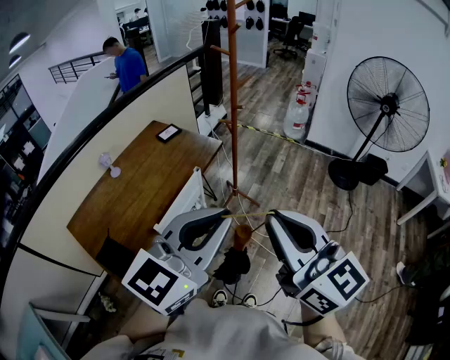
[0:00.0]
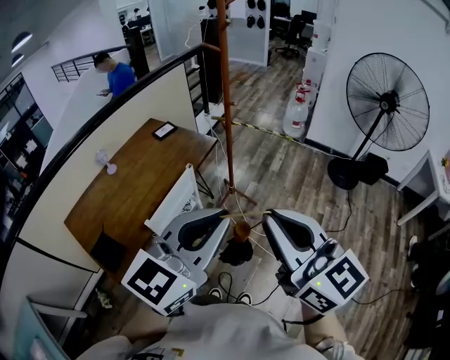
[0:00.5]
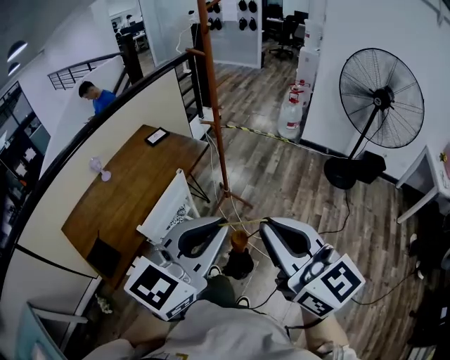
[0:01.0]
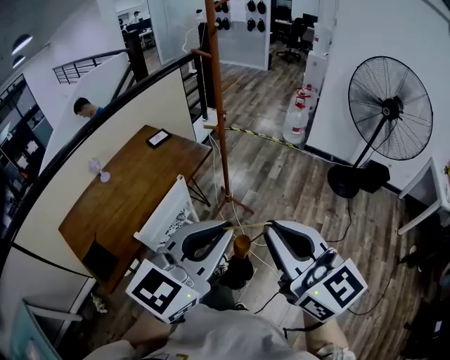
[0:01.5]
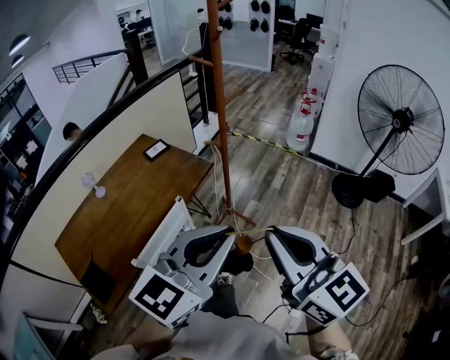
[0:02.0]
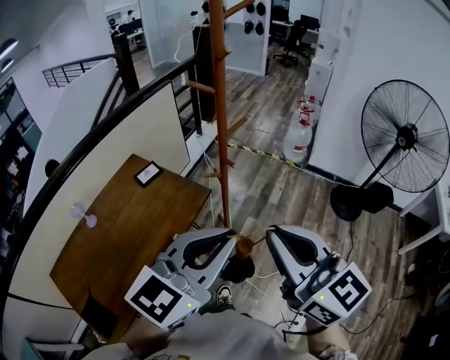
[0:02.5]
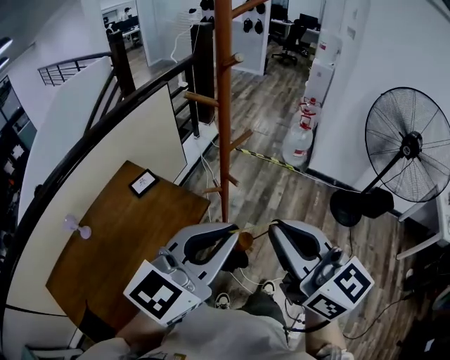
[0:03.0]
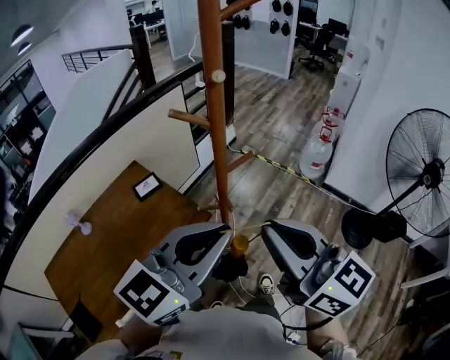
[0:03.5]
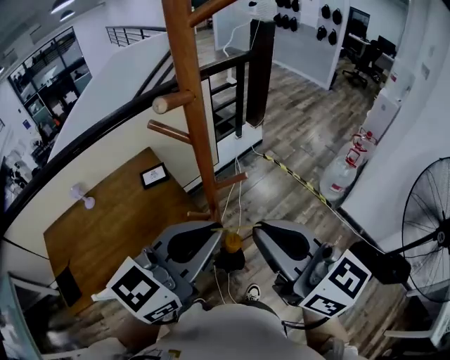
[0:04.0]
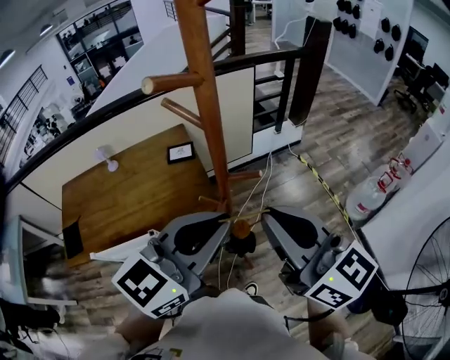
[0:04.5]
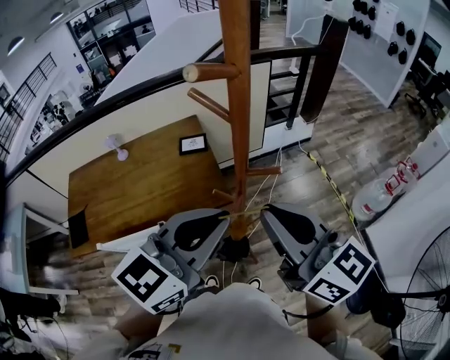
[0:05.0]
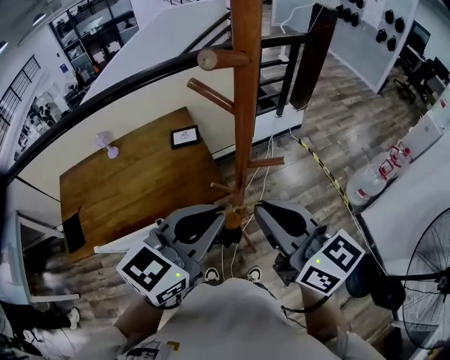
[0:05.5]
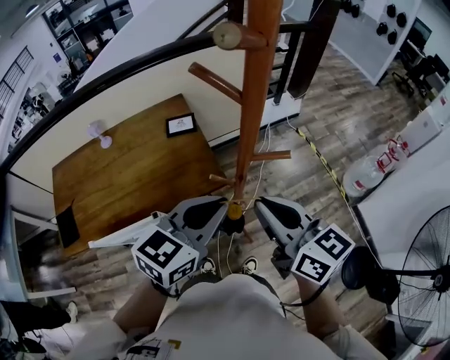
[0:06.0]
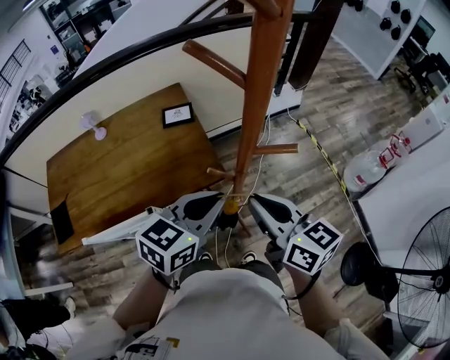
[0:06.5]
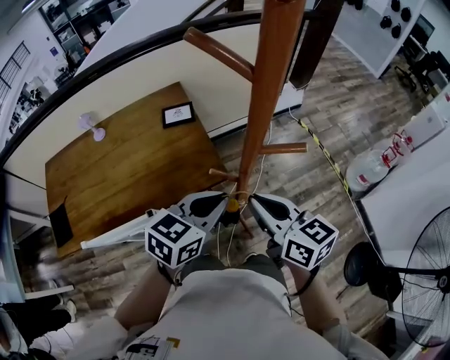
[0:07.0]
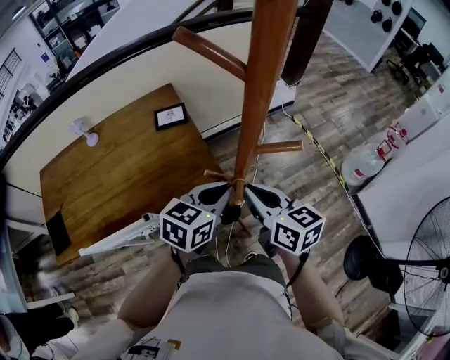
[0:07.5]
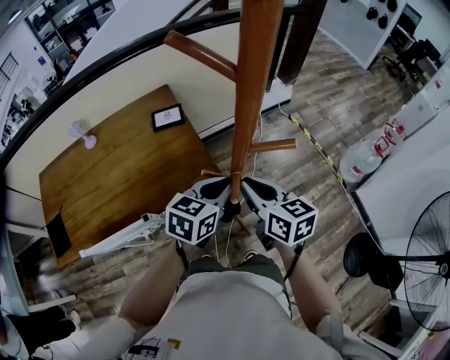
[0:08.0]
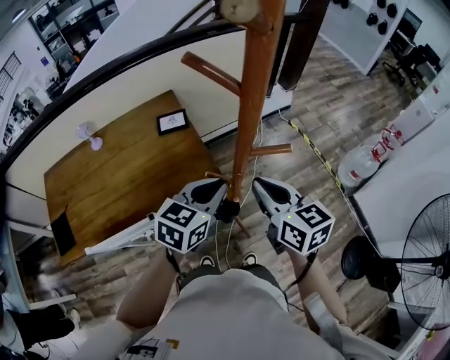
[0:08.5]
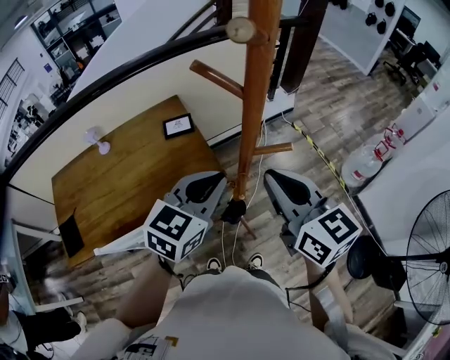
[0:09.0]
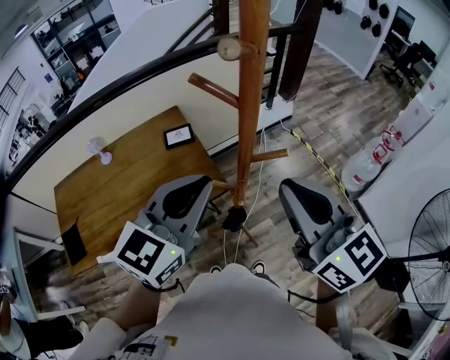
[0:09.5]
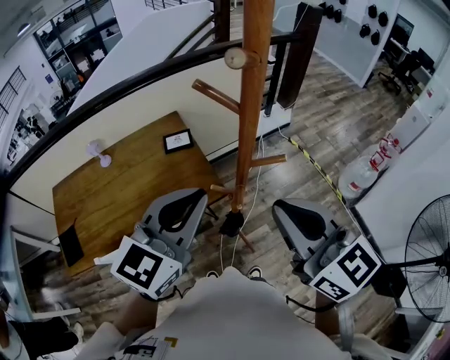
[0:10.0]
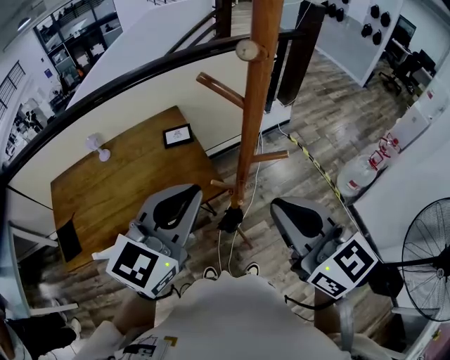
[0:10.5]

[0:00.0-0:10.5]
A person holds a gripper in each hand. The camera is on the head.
0:00.0 to 0:02.0: The grippers both shift forward and to the right by roughly 20 cm.
0:02.0 to 0:04.0: The two grippers travel together, roughly 40 cm. The right gripper turns by approximately 30 degrees.
0:04.0 to 0:06.5: The left gripper shifts about 20 cm downward, and turns by roughly 30 degrees. Meanwhile the right gripper travels downward and forward by some 20 cm, and turns by some 20 degrees.
0:06.5 to 0:08.5: The right gripper reaches roughly 10 cm downward, then returns. The left gripper moves some 10 cm downward and comes back.
0:08.5 to 0:10.5: The right gripper travels upward and backward by roughly 20 cm. The left gripper moves upward, roughly 20 cm, and rotates about 20 degrees.

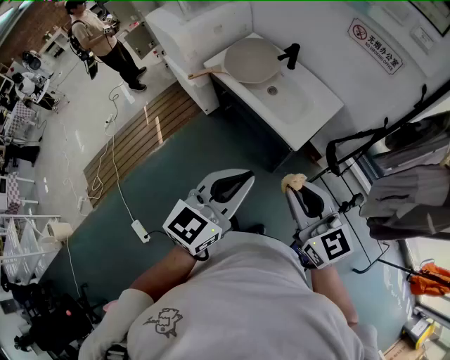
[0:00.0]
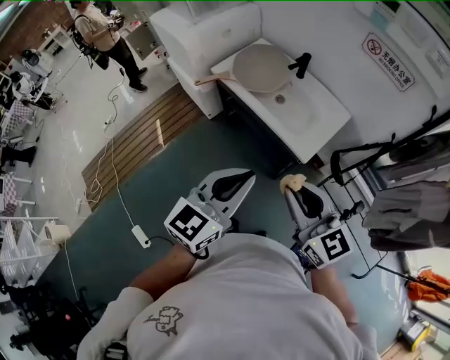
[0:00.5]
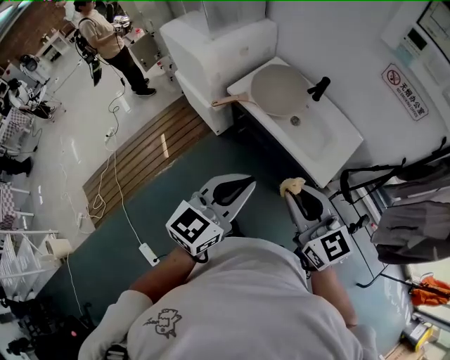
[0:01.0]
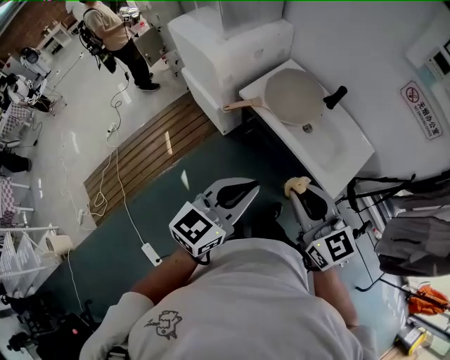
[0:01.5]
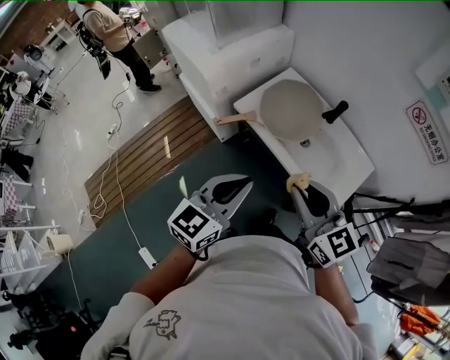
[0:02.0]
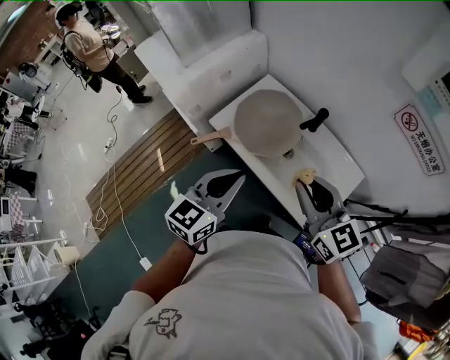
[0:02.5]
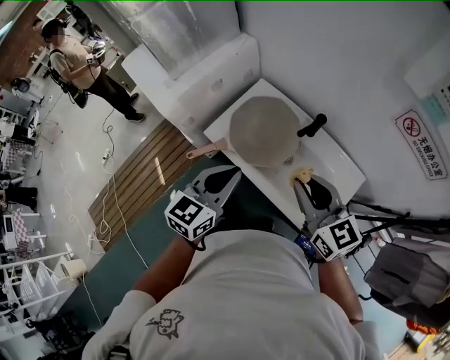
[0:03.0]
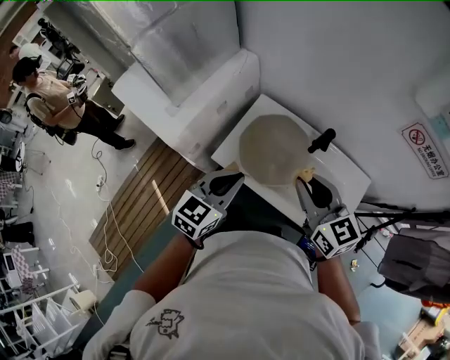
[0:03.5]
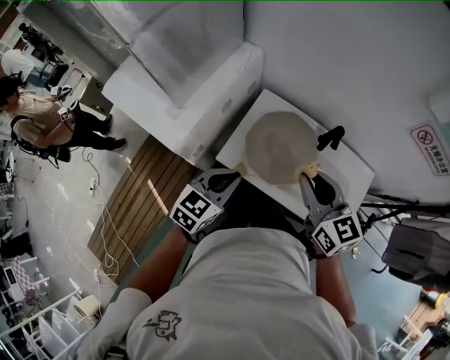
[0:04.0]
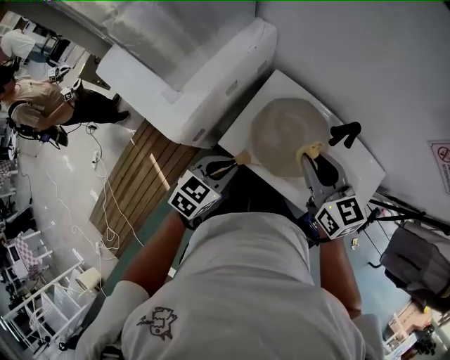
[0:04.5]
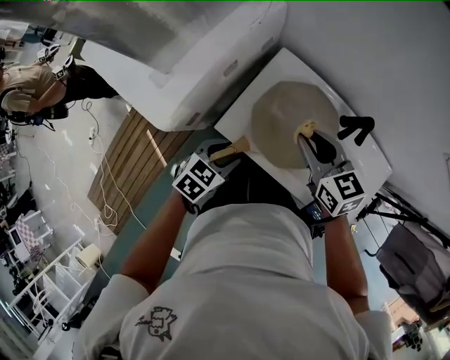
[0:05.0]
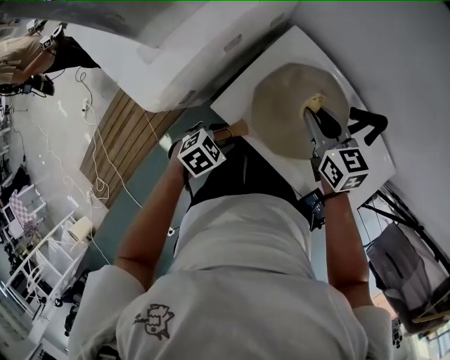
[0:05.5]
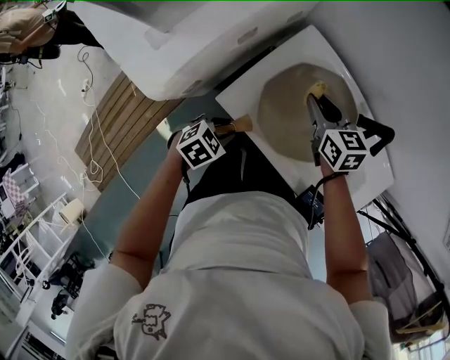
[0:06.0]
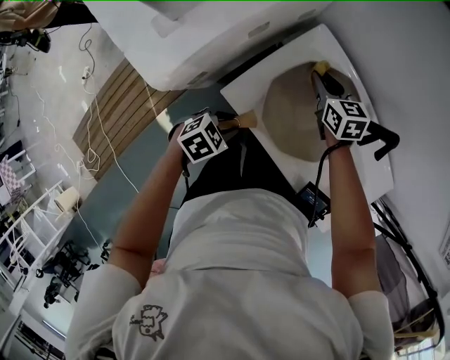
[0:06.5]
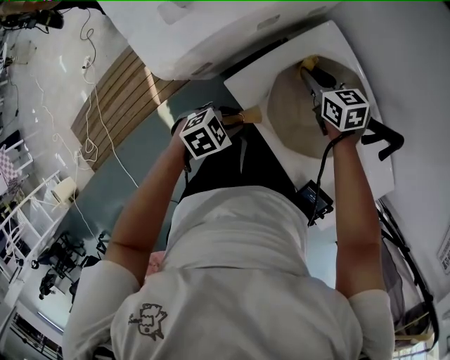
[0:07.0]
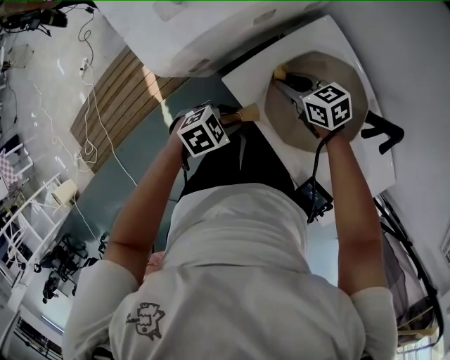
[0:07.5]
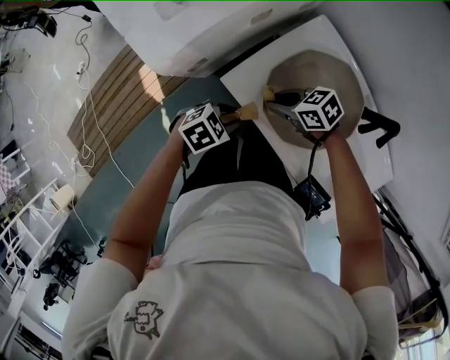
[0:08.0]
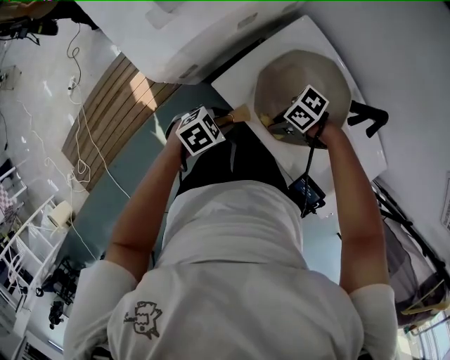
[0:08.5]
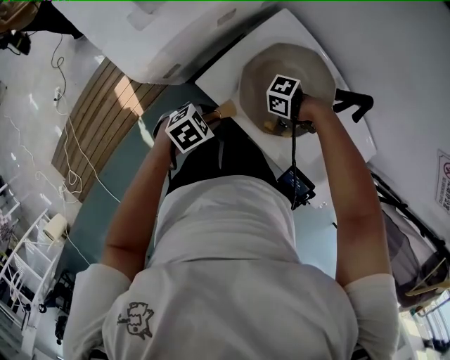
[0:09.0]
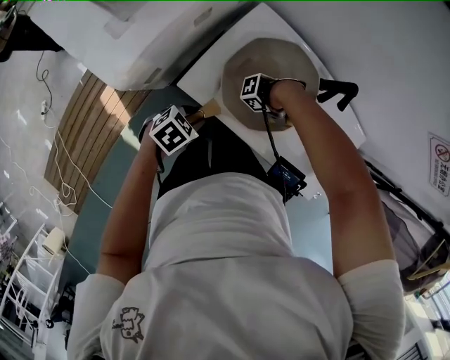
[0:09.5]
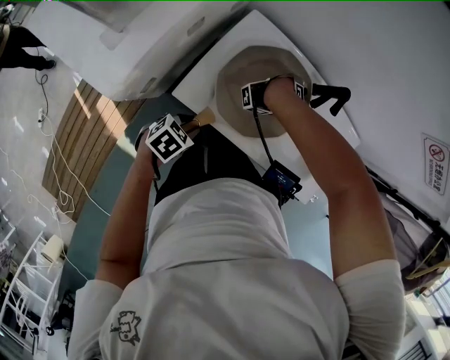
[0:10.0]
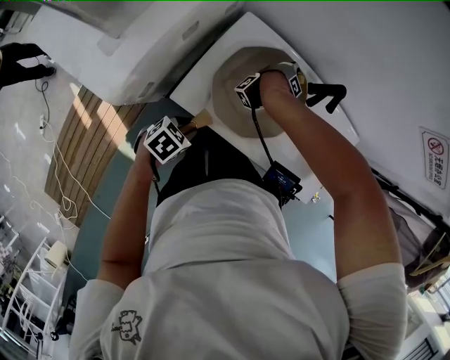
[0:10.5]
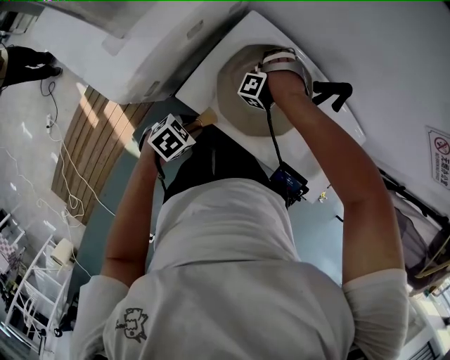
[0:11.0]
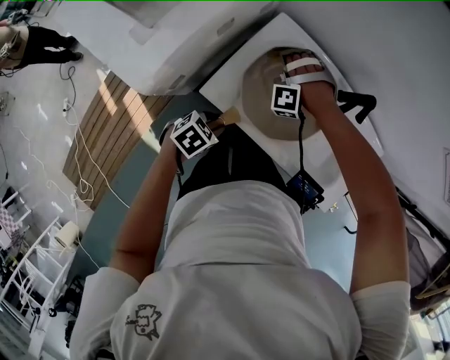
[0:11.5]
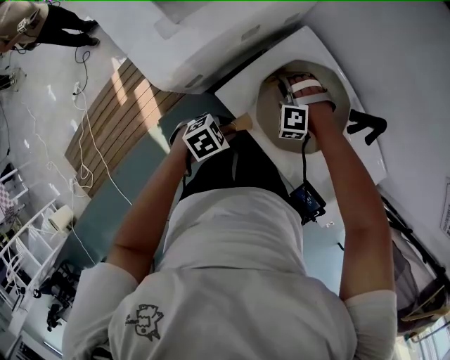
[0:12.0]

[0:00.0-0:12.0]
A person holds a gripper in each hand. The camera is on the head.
0:00.0 to 0:02.0: The two grippers go roughly 35 cm forward and to the left.
0:02.0 to 0:04.0: The right gripper travels forward by about 30 cm, and rotates roughly 30 degrees; the left gripper moves forward and downward, some 30 cm, and swivels roughly 30 degrees.
0:04.0 to 0:06.0: The right gripper shifts roughly 30 cm downward and forward, and rotates roughly 30 degrees. The left gripper goes roughly 25 cm downward, angles its fingers downward, by about 30 degrees, and opens its fingers.
0:06.0 to 0:08.0: The right gripper moves some 20 cm, and swivels approximately 50 degrees.
0:08.0 to 0:10.0: The right gripper moves roughly 25 cm, and rotates some 110 degrees.
0:10.0 to 0:12.0: The right gripper shifts by about 25 cm, and tips its fingers downward by roughly 30 degrees.

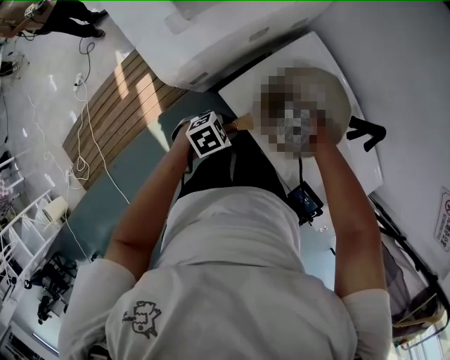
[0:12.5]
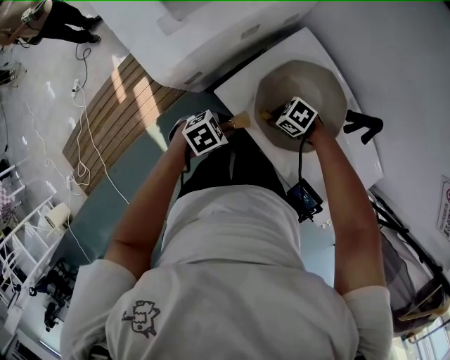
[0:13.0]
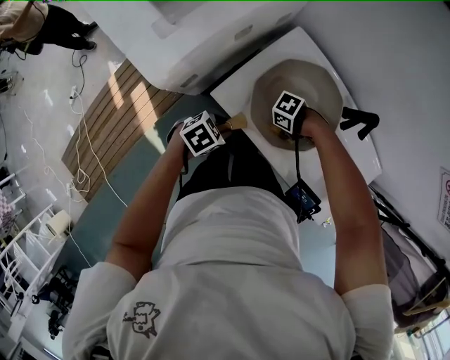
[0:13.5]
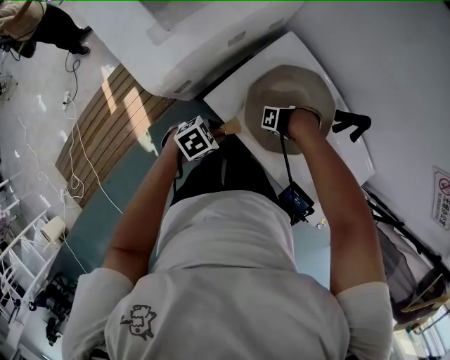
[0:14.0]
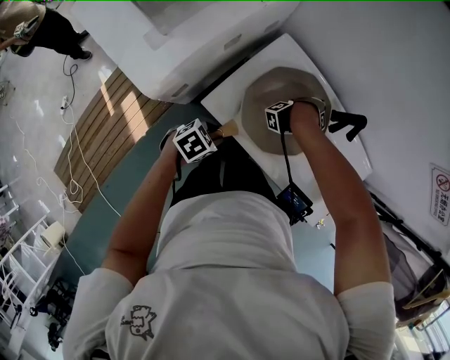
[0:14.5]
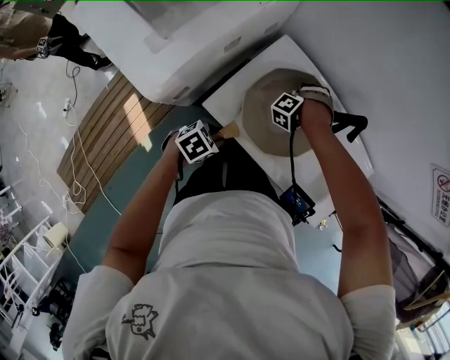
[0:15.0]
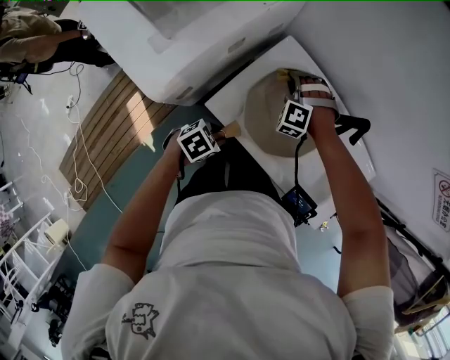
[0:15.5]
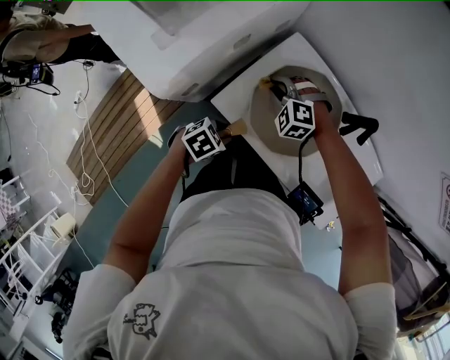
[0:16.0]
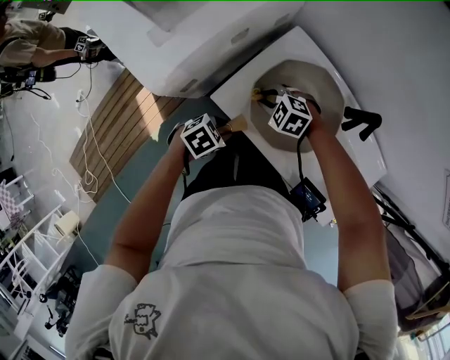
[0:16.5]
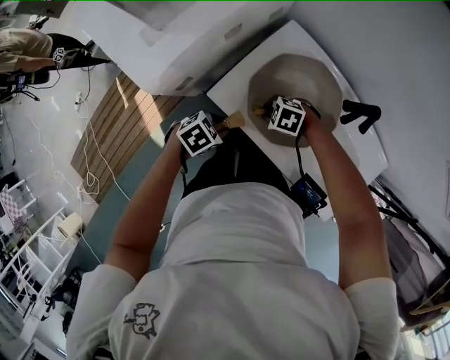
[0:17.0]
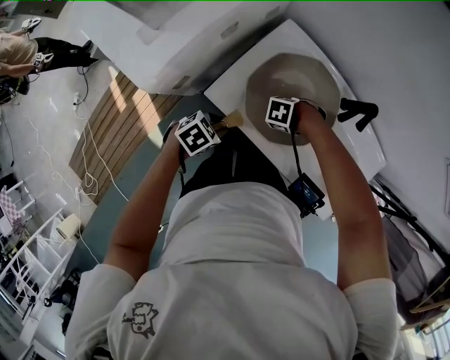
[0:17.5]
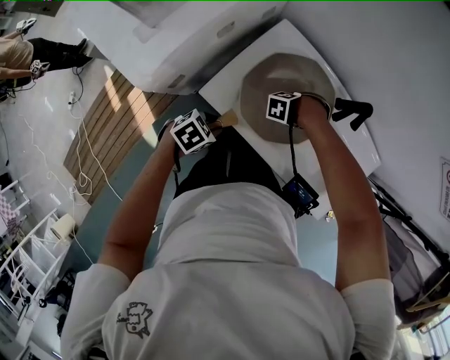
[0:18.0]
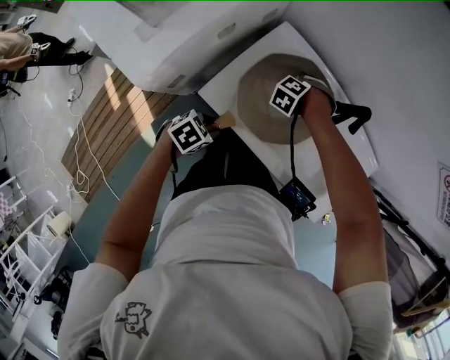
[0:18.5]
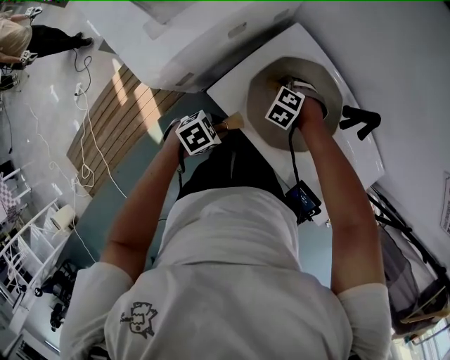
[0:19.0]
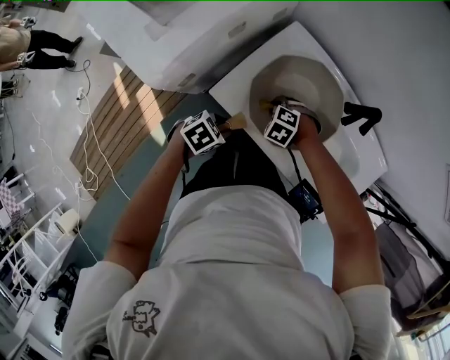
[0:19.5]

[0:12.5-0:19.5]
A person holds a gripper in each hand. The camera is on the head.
0:12.5 to 0:14.5: The right gripper moves about 25 cm, and points its fingers about 30 degrees further upward.
0:14.5 to 0:16.0: The right gripper ends up about 25 cm from where it was, and rotates some 80 degrees.
0:16.0 to 0:17.5: The right gripper moves about 20 cm, and turns by about 60 degrees.
0:17.5 to 0:19.5: The right gripper turns by roughly 30 degrees.
